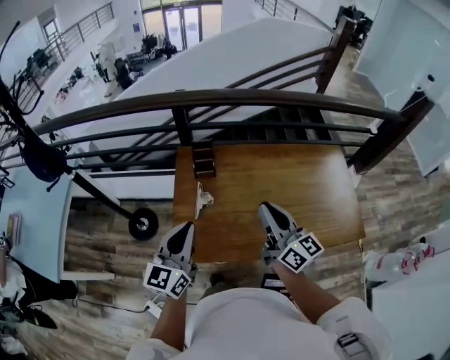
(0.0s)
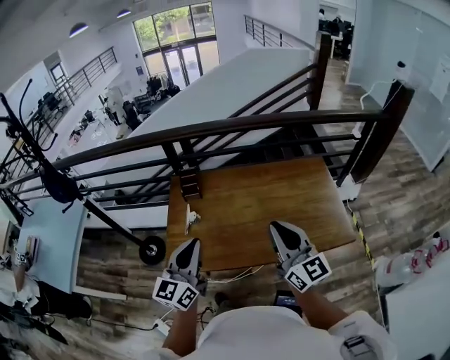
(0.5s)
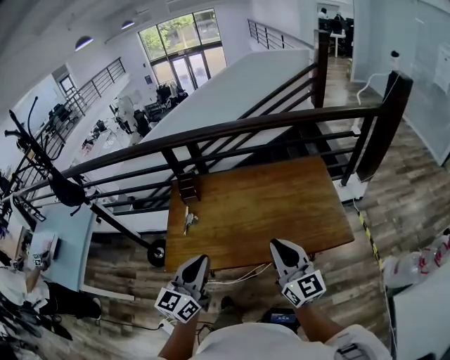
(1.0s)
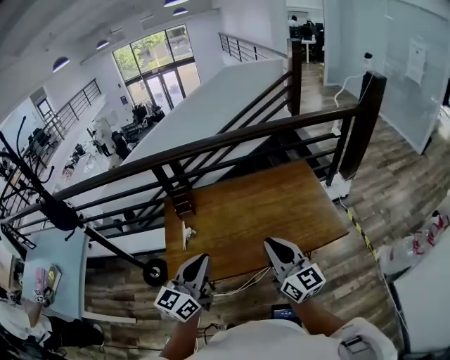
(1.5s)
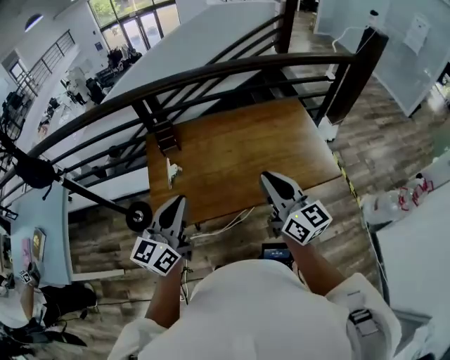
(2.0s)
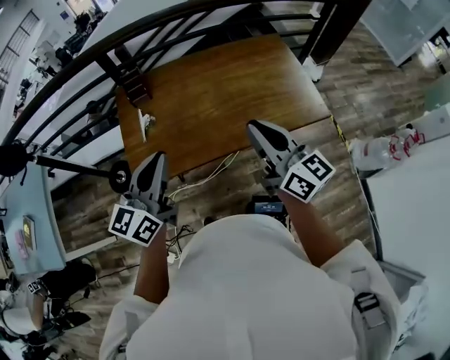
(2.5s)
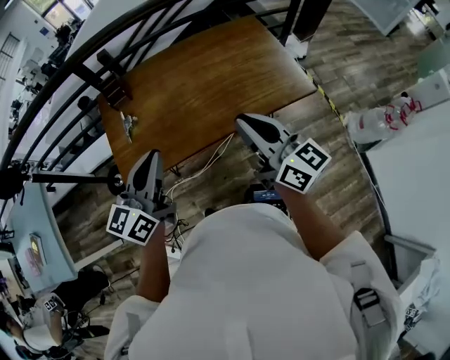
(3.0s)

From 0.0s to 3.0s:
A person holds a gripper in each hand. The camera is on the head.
From 0.0s to 1.5s: The right gripper moves to the right and backward, roughly 25 cm. The left gripper shifts some 25 cm to the right, backward and upward.
From 1.5s to 3.0s: The grippers both shift downward by about 5 cm. The left gripper goes to the left and returns, some 5 cm each way.

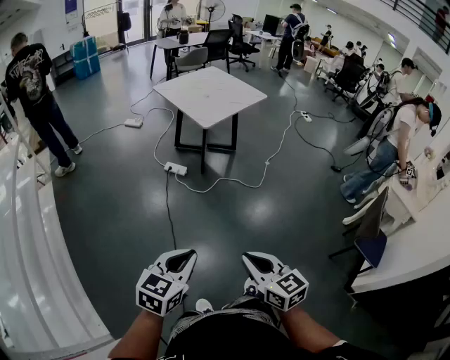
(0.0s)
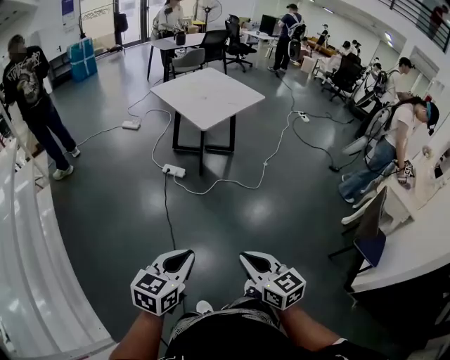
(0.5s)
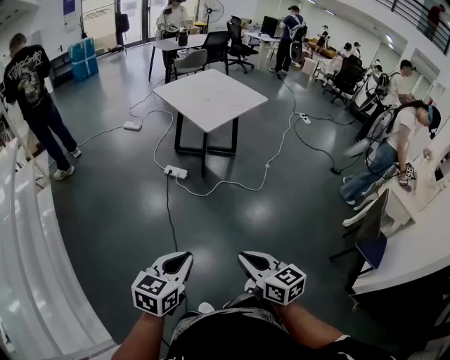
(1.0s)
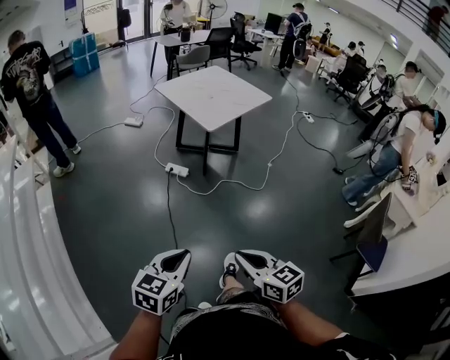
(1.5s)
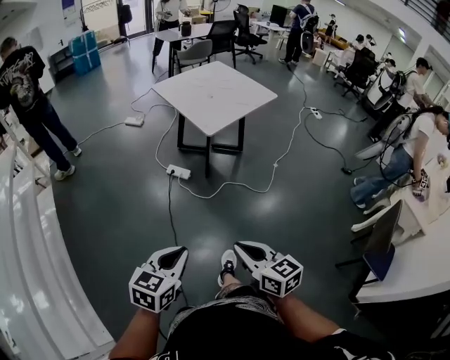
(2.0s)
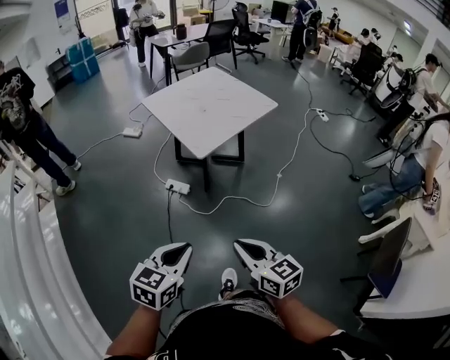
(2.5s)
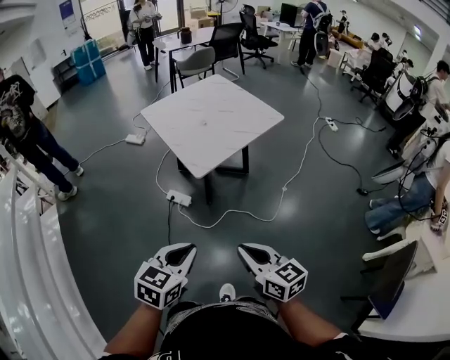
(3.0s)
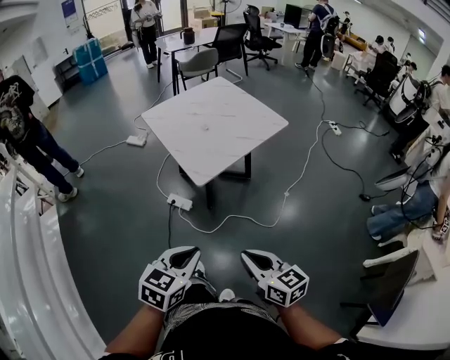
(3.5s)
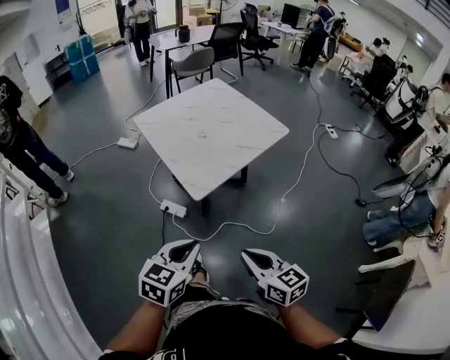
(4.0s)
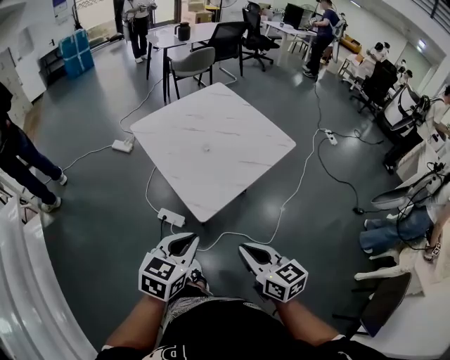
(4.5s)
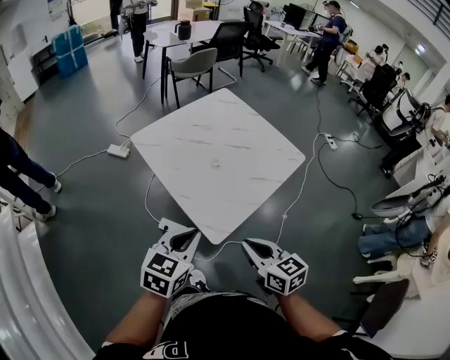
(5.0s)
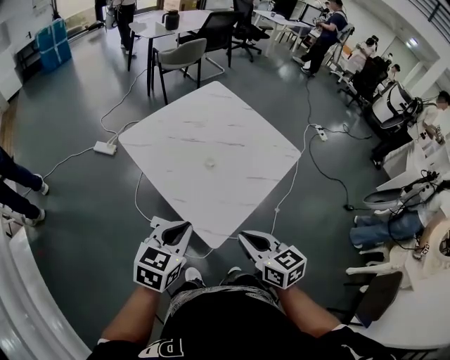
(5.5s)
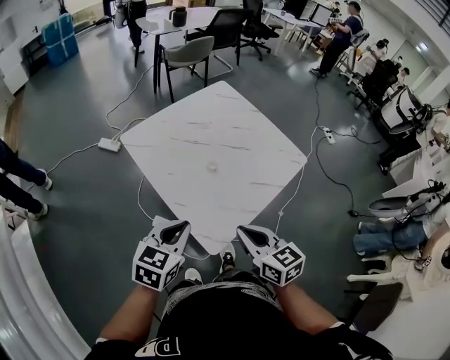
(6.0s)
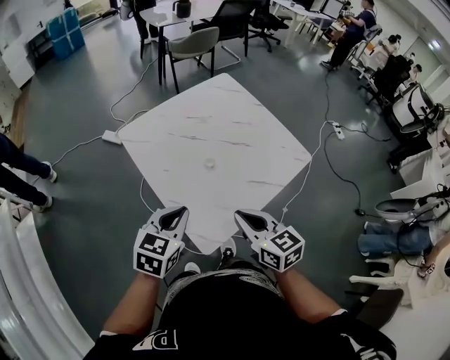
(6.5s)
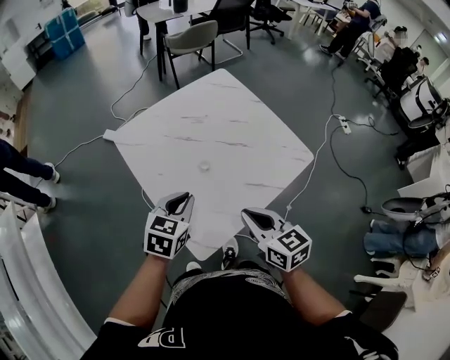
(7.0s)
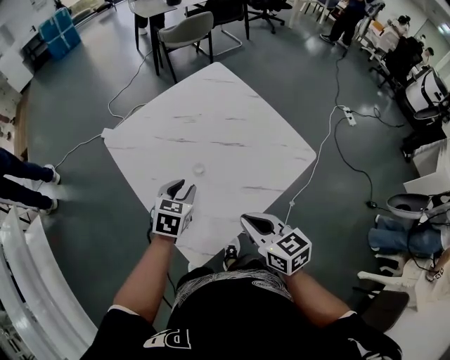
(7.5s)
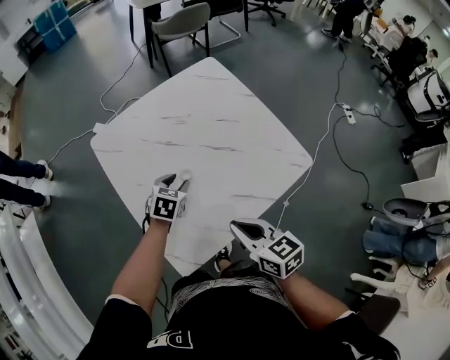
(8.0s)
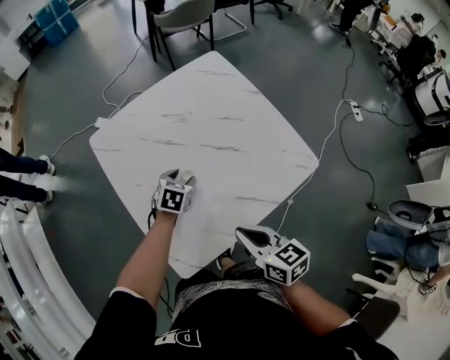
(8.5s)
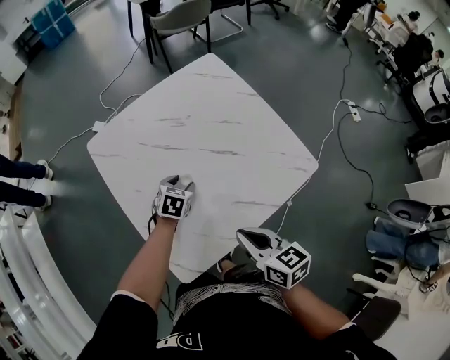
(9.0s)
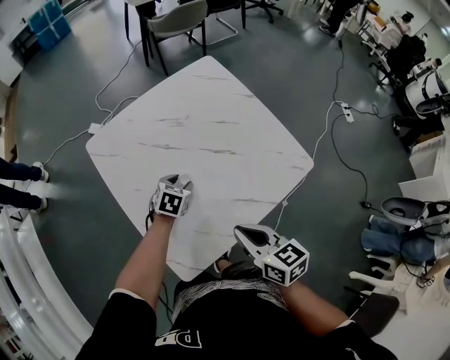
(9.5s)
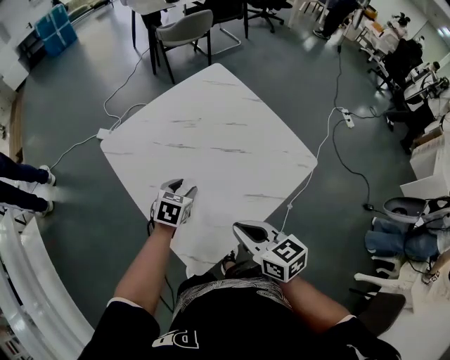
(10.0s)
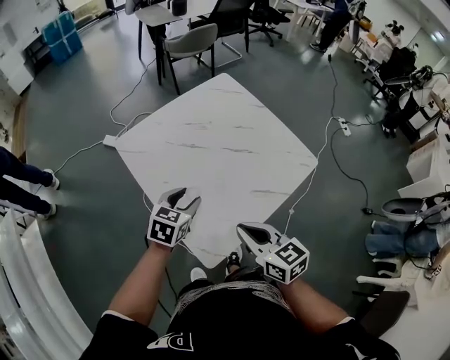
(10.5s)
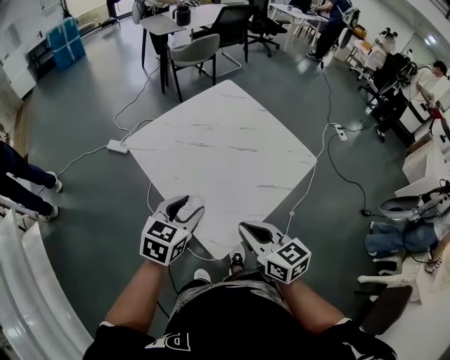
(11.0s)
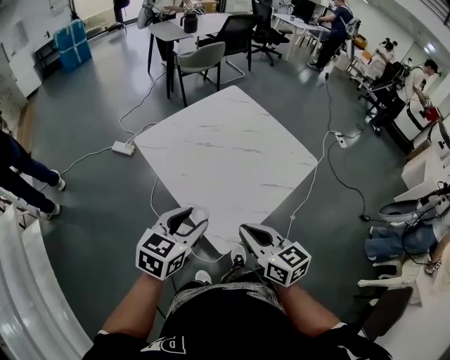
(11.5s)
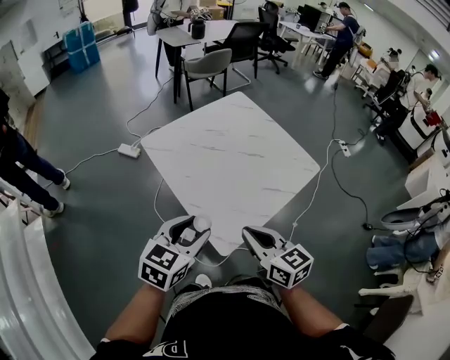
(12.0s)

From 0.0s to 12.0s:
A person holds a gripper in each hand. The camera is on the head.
From 0.0s to 2.0s: The grippers both shift forward by roughly 15 cm.
From 2.0s to 4.0s: The two grippers travel together, forward, approximately 40 cm.
From 4.0s to 6.0s: Both grippers move forward, approximately 35 cm.
From 6.0s to 8.0s: The right gripper shifts about 20 cm to the right, forward and downward. The left gripper goes some 35 cm forward, downward and to the right, swivels approximately 20 degrees, and opens up.
From 8.0s to 10.0s: The grippers make only small movements.
From 10.0s to 12.0s: The right gripper moves backward, to the left and upward, some 20 cm, while the left gripper moves backward and upward, about 35 cm, and changes its angle by approximately 20 degrees.

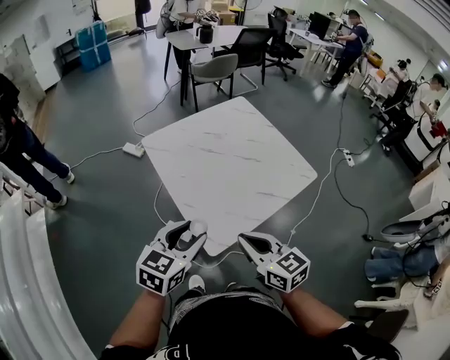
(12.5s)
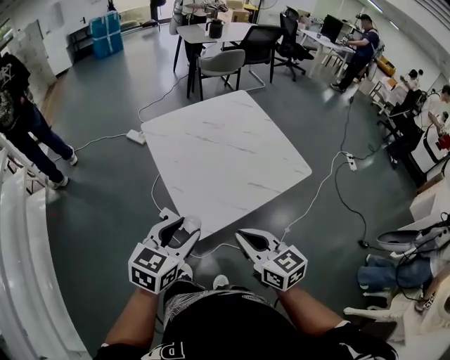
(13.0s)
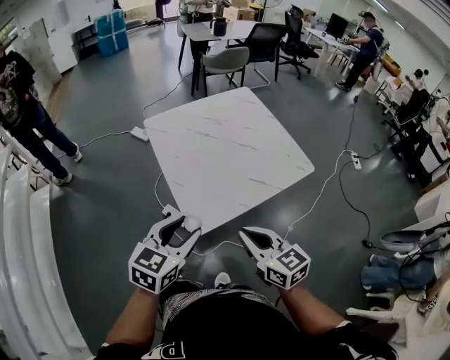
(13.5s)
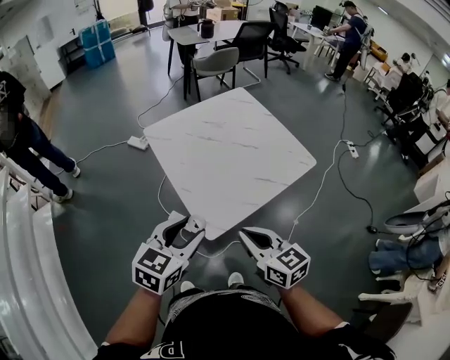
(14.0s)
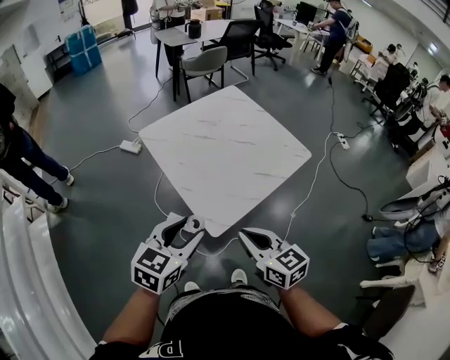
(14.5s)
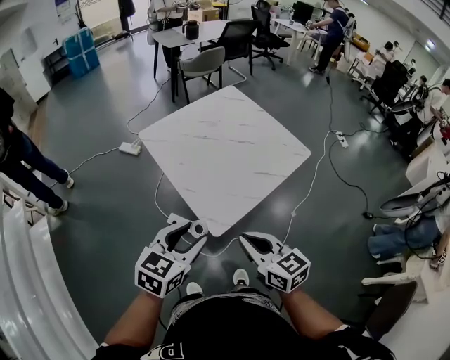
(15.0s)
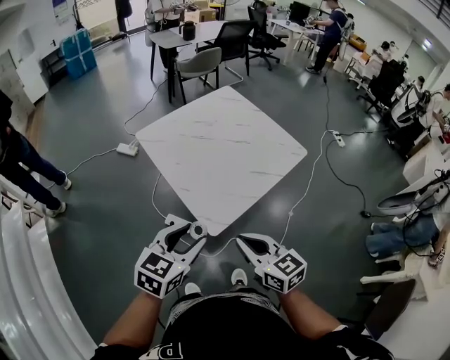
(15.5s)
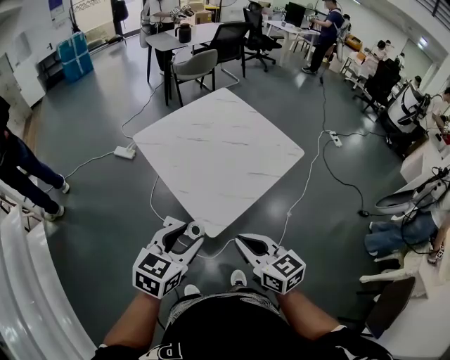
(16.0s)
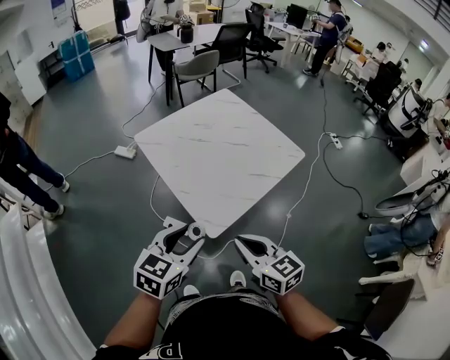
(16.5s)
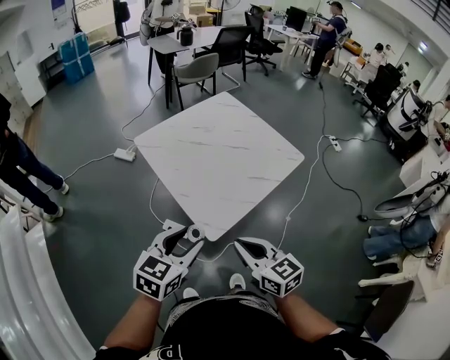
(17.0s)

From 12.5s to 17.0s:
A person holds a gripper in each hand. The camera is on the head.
From 12.5s to 14.5s: The grippers both shift backward by approximately 5 cm. The right gripper goes to the right and returns, approximately 5 cm each way.
From 14.5s to 17.0s: The grippers move only a little.

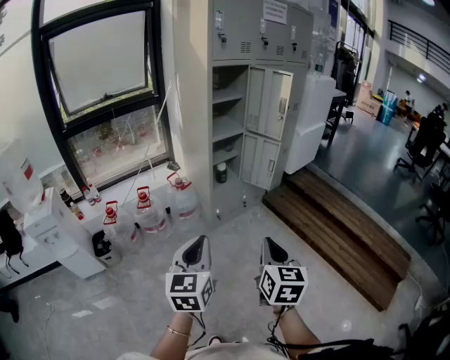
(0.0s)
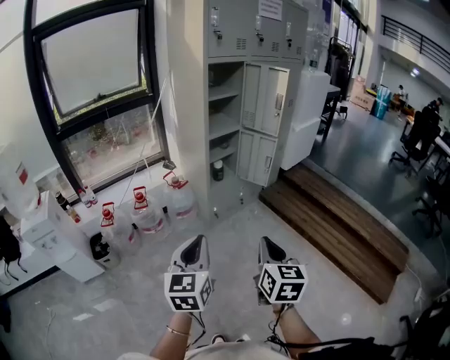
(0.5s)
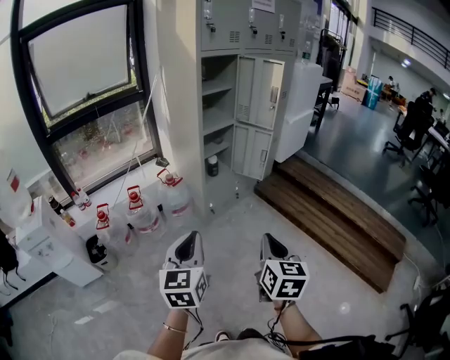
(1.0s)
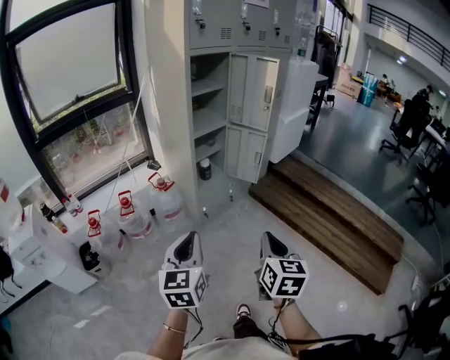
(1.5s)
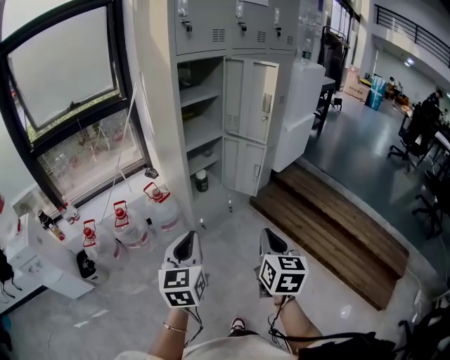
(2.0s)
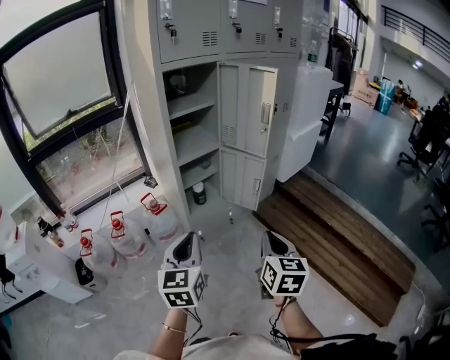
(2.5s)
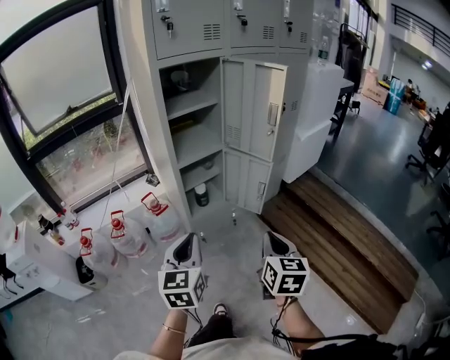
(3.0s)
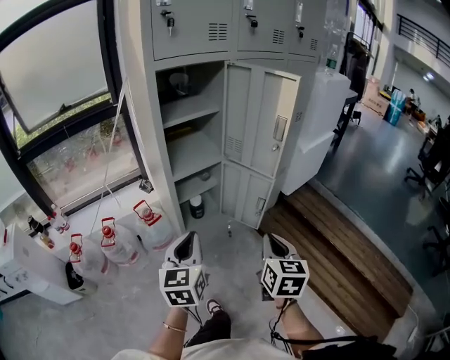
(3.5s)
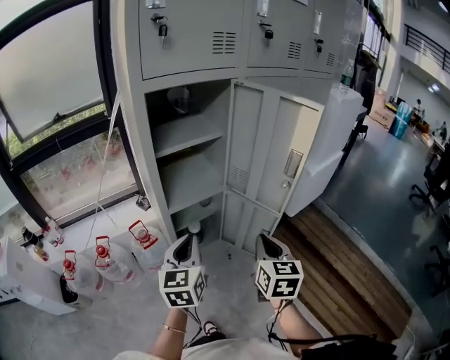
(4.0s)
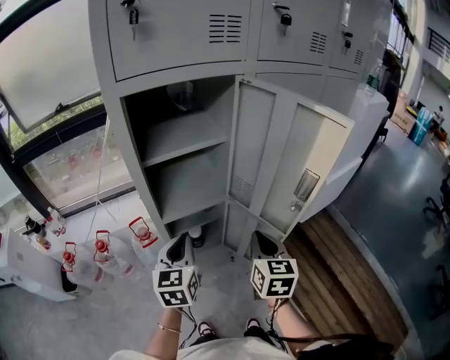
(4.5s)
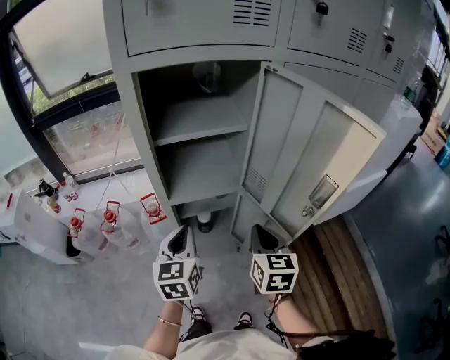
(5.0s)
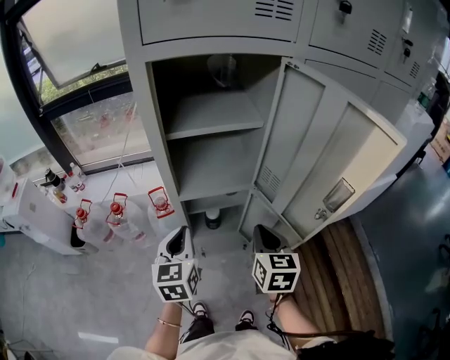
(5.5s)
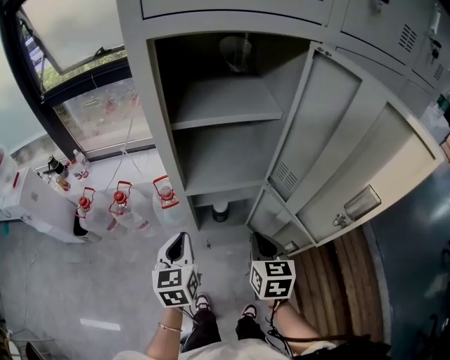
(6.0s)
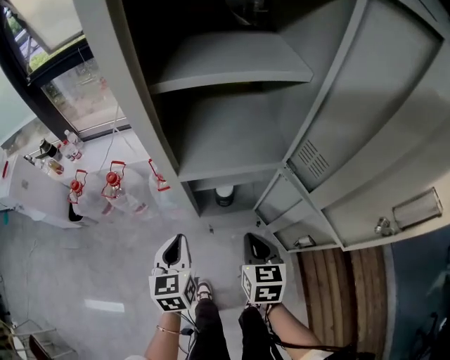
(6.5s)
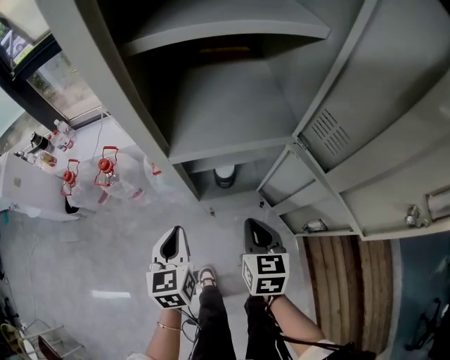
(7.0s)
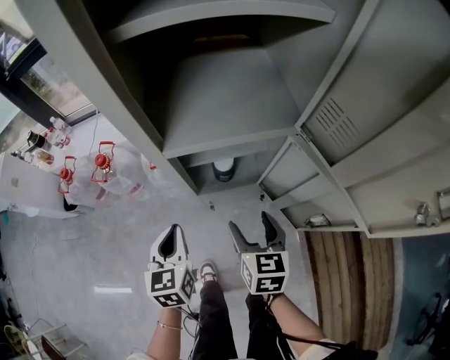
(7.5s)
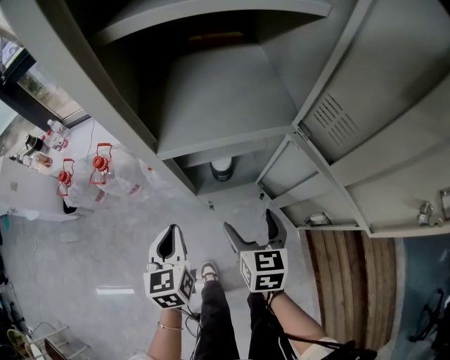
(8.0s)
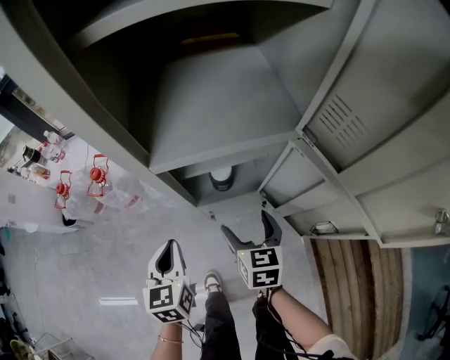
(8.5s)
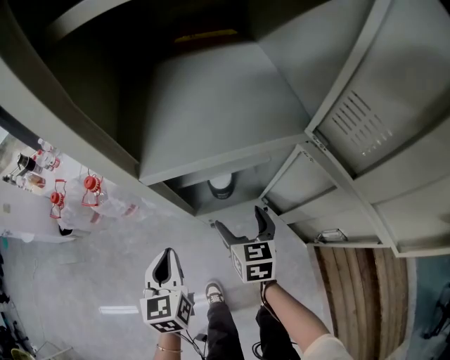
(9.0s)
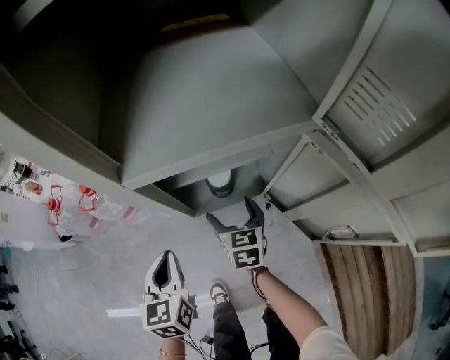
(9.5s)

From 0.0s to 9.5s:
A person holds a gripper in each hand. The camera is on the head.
From 0.0s to 2.0s: Both grippers move forward, approximately 20 cm.
From 2.0s to 4.0s: The two grippers go approximately 40 cm forward.
From 4.0s to 5.5s: The left gripper moves forward and downward, some 10 cm, and turns by approximately 20 degrees, while the right gripper heads forward and downward, covering about 15 cm, and rotates some 20 degrees.
From 5.5s to 7.5s: Both grippers move downward, some 25 cm. The right gripper opens up.
From 7.5s to 9.5s: The left gripper travels downward by some 5 cm. The right gripper goes some 20 cm downward and forward.
